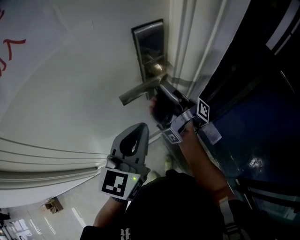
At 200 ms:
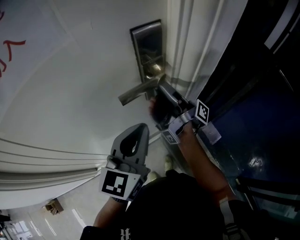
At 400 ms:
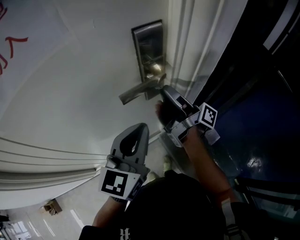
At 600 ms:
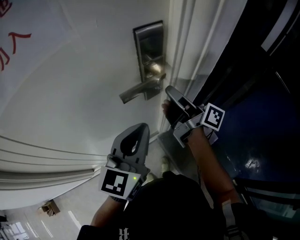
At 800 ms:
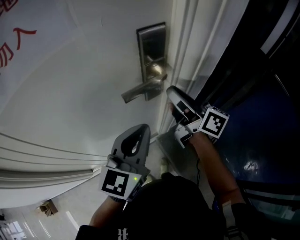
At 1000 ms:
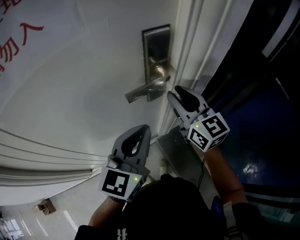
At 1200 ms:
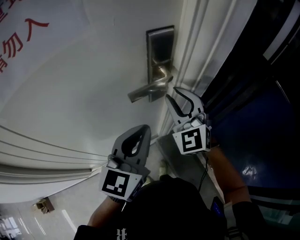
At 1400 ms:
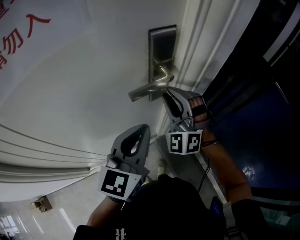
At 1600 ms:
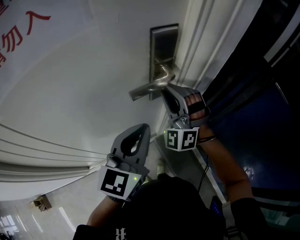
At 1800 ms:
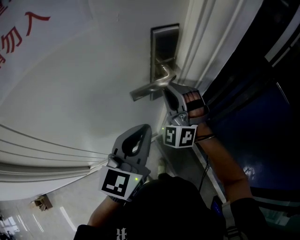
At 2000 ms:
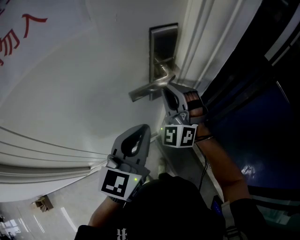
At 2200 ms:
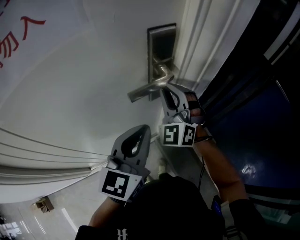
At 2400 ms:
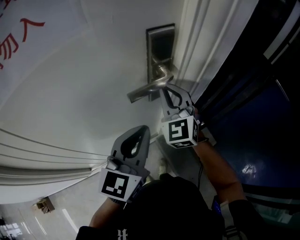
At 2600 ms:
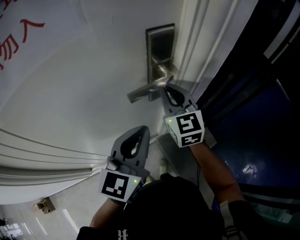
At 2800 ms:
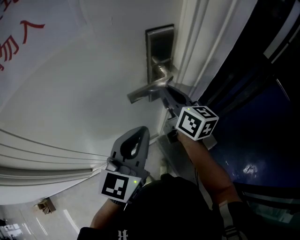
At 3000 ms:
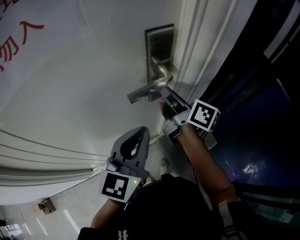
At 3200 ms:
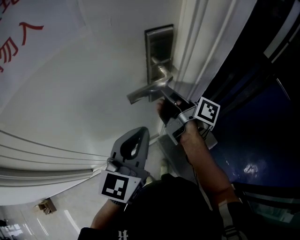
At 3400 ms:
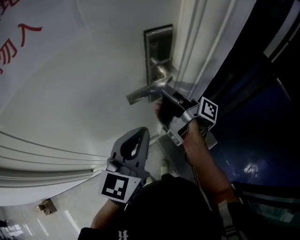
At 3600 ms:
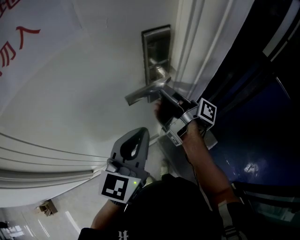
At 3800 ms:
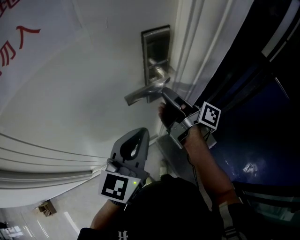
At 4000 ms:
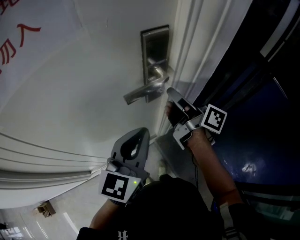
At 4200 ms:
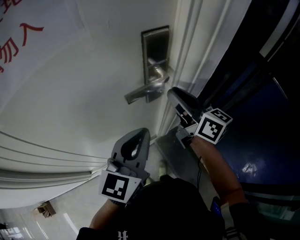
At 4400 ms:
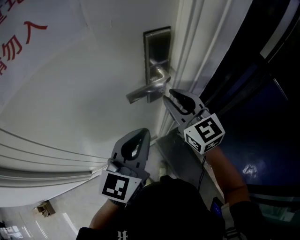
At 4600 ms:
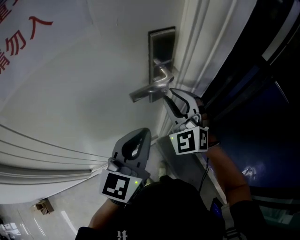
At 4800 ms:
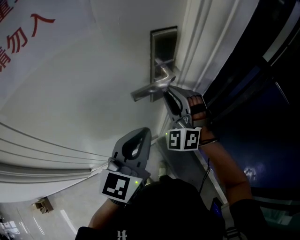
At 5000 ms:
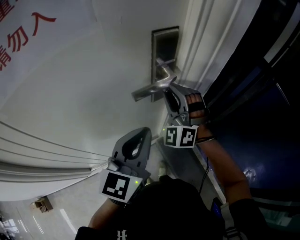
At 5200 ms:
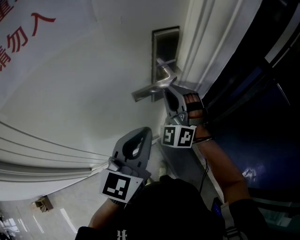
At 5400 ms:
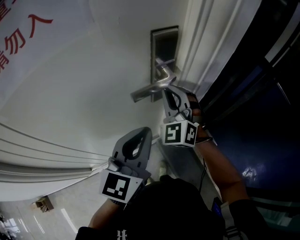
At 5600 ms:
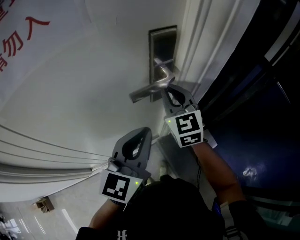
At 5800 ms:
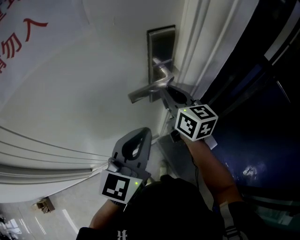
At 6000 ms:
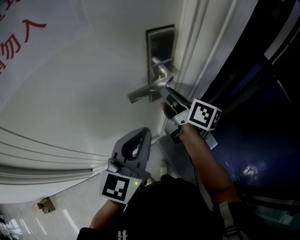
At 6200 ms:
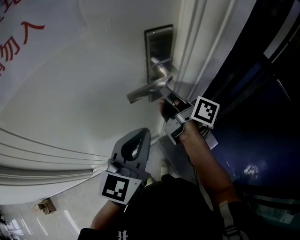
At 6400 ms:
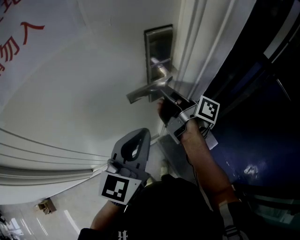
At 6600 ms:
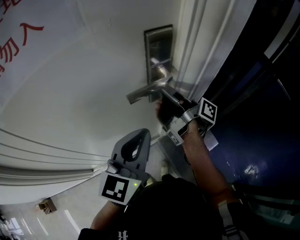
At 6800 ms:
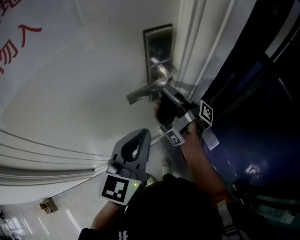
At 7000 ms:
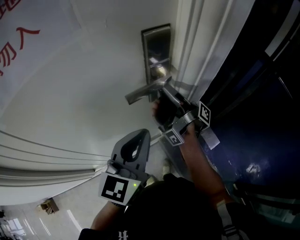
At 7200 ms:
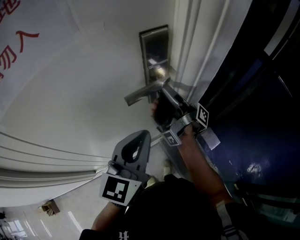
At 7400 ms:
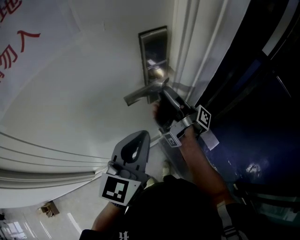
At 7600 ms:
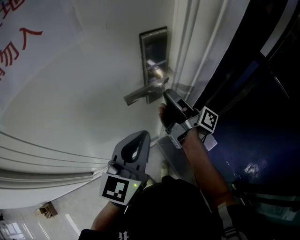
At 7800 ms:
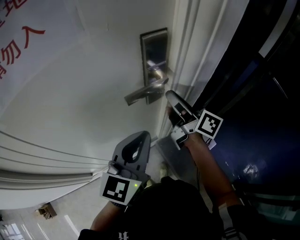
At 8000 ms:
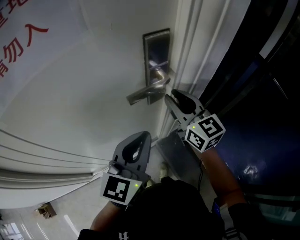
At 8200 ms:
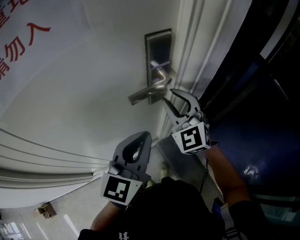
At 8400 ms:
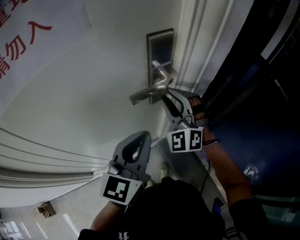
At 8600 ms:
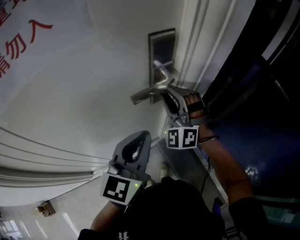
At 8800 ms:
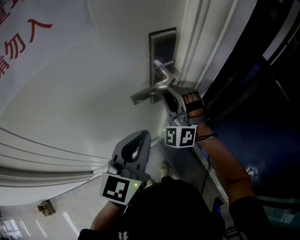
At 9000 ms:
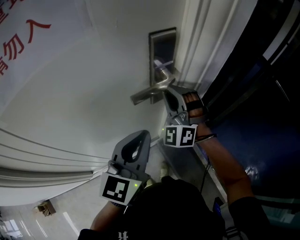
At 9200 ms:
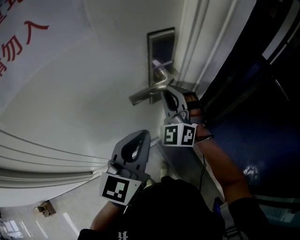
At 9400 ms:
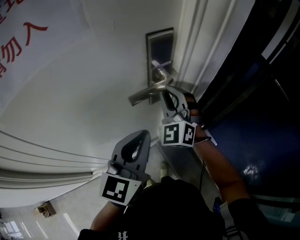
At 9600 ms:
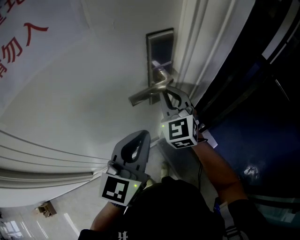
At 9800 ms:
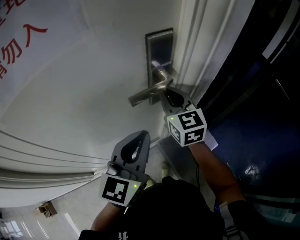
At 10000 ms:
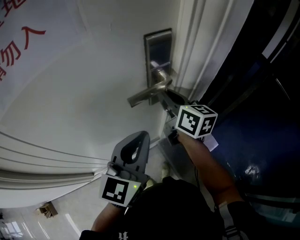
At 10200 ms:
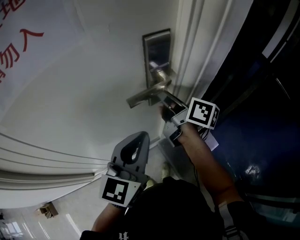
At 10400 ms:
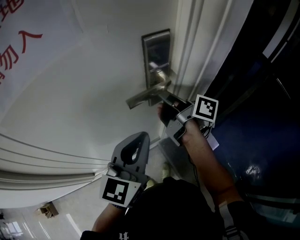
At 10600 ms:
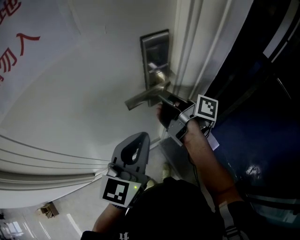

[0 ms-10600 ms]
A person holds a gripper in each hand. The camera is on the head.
0 ms to 1600 ms: The right gripper tilts its fingers approximately 30 degrees downward.
1600 ms to 3000 ms: The right gripper twists about 130 degrees clockwise, seen from behind.
3000 ms to 4600 ms: The right gripper rotates around the line of its fingers by approximately 100 degrees, counterclockwise from behind.
4600 ms to 6000 ms: The right gripper rotates around the line of its fingers by approximately 100 degrees, clockwise from behind.
6000 ms to 7600 ms: The right gripper rotates approximately 40 degrees.
7600 ms to 9000 ms: The right gripper shifts by roughly 5 cm, and rotates around the line of its fingers by approximately 150 degrees, counterclockwise from behind.
9000 ms to 10600 ms: The right gripper twists some 150 degrees clockwise, seen from behind.

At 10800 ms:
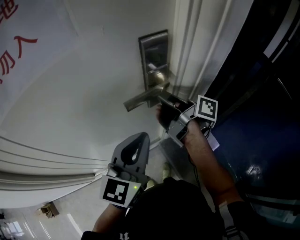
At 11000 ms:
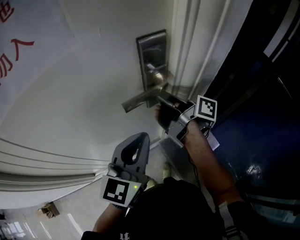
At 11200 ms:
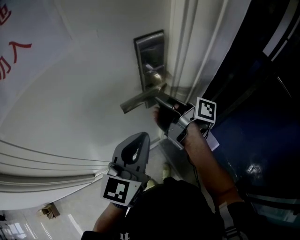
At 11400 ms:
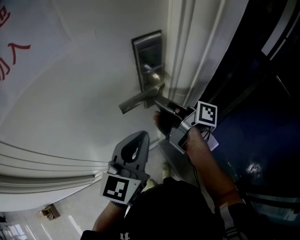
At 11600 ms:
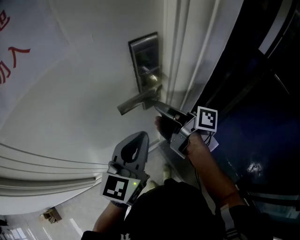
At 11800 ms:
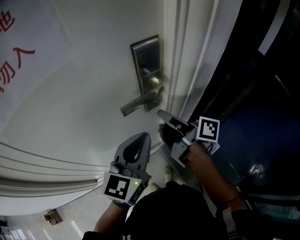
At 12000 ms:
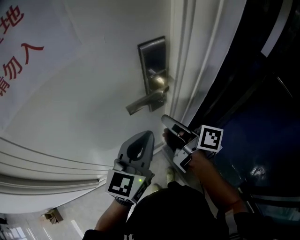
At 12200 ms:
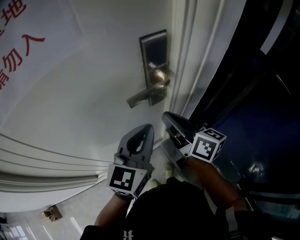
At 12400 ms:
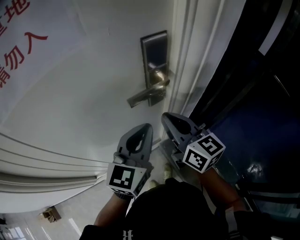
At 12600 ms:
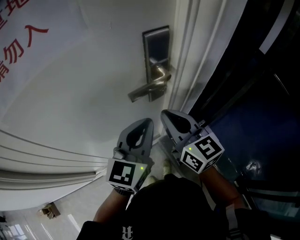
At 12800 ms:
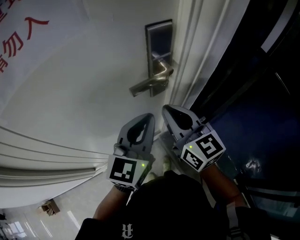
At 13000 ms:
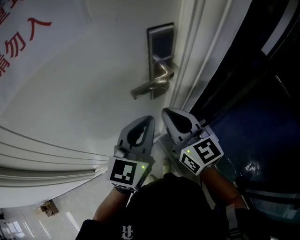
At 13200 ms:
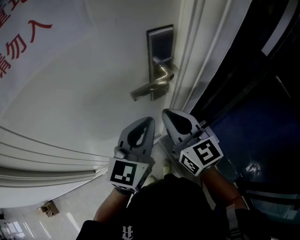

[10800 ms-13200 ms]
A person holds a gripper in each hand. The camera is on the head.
10800 ms to 12000 ms: The right gripper is displaced backward by approximately 5 cm.
12000 ms to 13200 ms: The right gripper ends up approximately 5 cm from where it was, and rolls counterclockwise, seen from behind, by roughly 60 degrees.

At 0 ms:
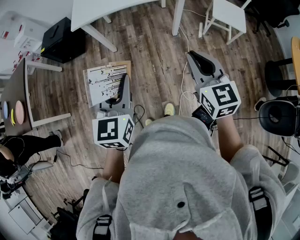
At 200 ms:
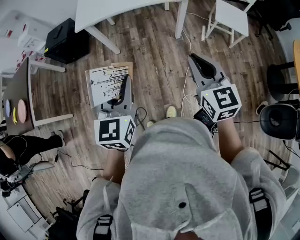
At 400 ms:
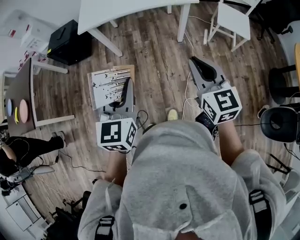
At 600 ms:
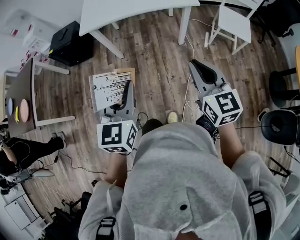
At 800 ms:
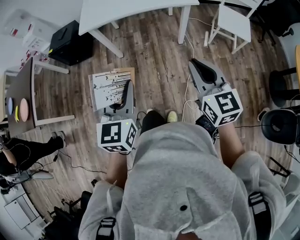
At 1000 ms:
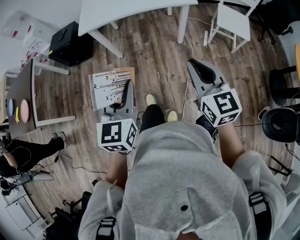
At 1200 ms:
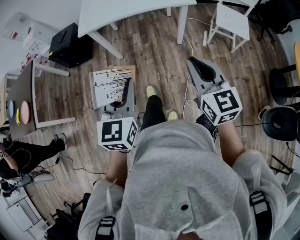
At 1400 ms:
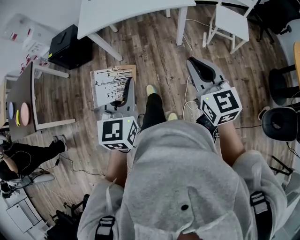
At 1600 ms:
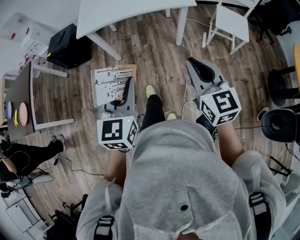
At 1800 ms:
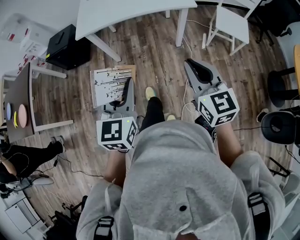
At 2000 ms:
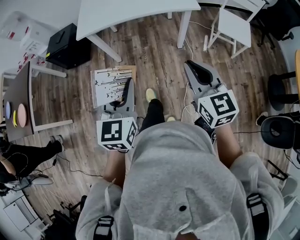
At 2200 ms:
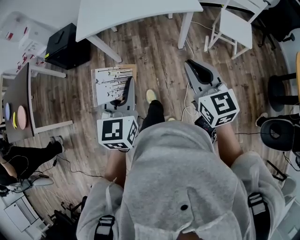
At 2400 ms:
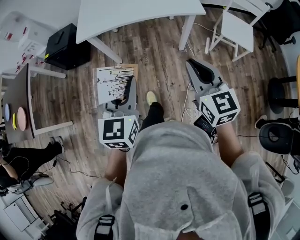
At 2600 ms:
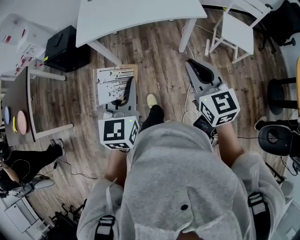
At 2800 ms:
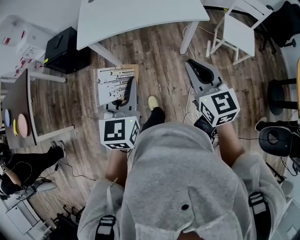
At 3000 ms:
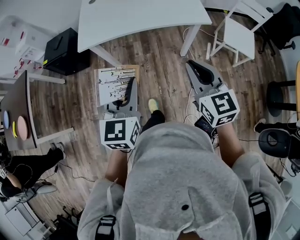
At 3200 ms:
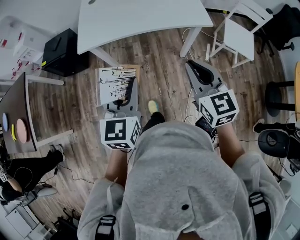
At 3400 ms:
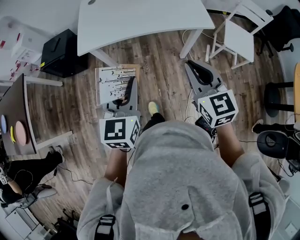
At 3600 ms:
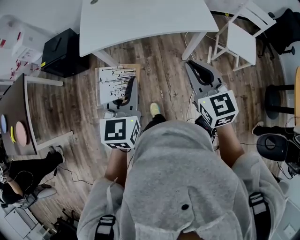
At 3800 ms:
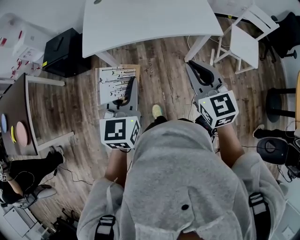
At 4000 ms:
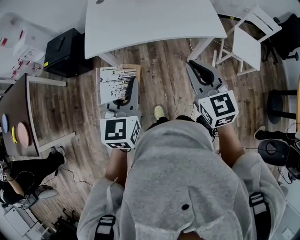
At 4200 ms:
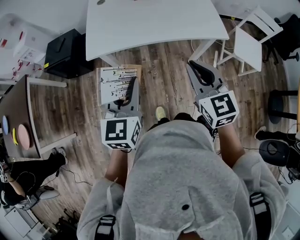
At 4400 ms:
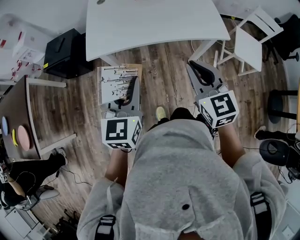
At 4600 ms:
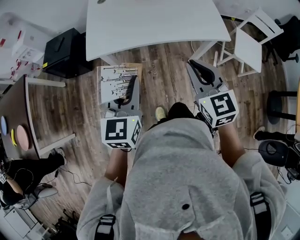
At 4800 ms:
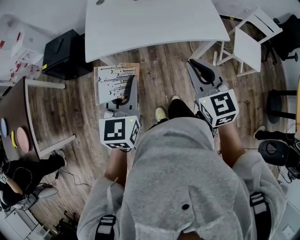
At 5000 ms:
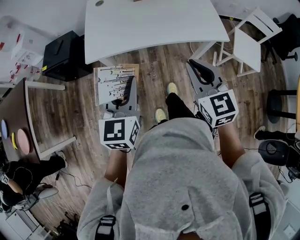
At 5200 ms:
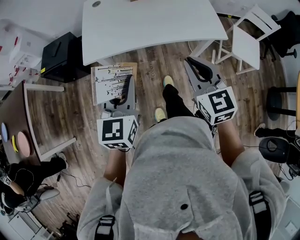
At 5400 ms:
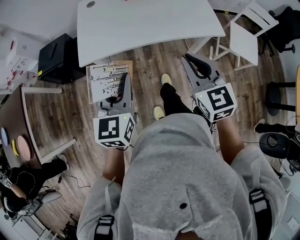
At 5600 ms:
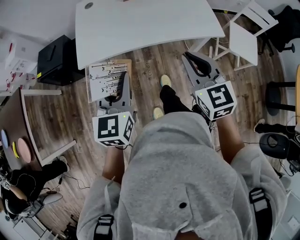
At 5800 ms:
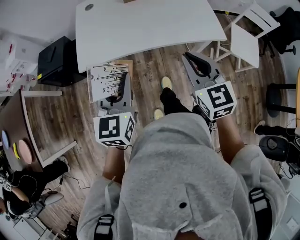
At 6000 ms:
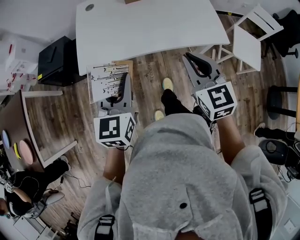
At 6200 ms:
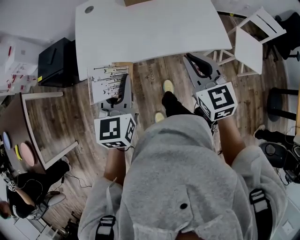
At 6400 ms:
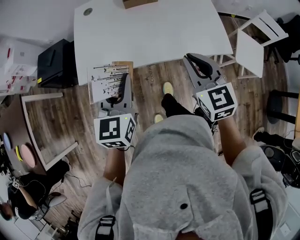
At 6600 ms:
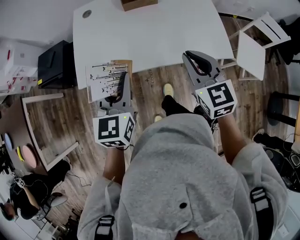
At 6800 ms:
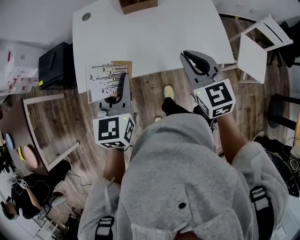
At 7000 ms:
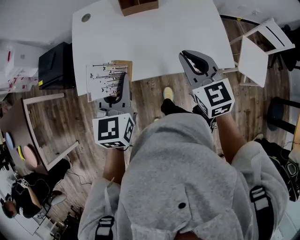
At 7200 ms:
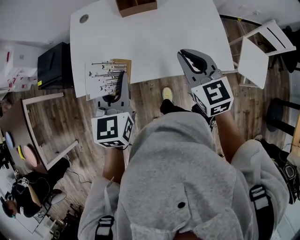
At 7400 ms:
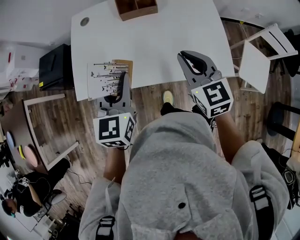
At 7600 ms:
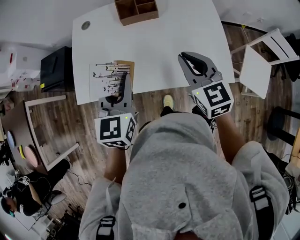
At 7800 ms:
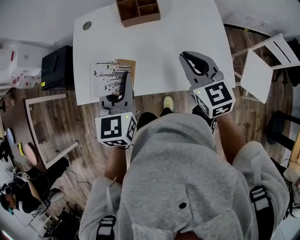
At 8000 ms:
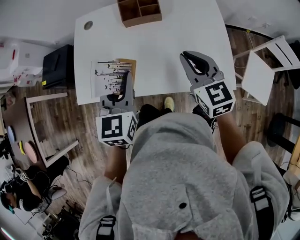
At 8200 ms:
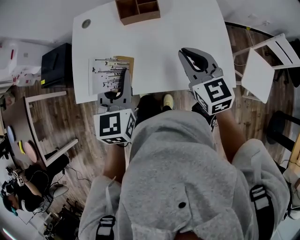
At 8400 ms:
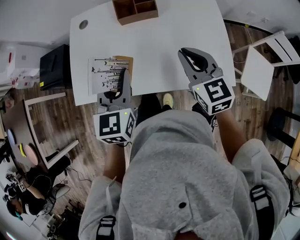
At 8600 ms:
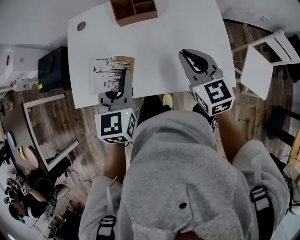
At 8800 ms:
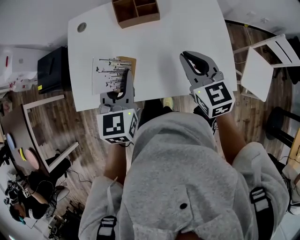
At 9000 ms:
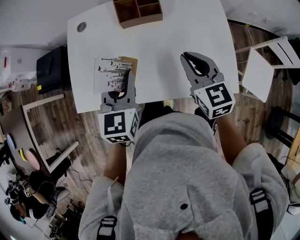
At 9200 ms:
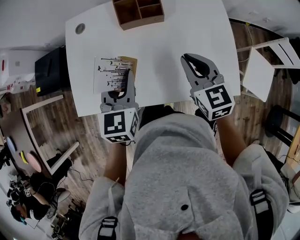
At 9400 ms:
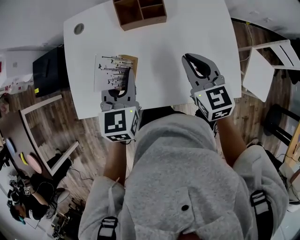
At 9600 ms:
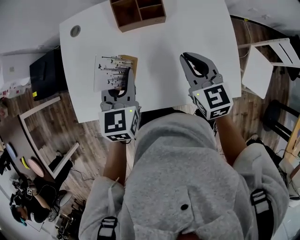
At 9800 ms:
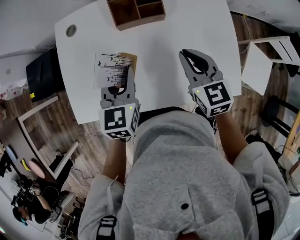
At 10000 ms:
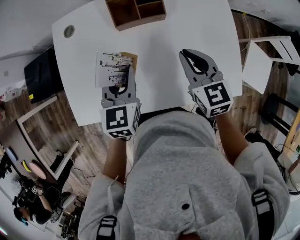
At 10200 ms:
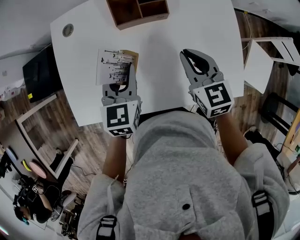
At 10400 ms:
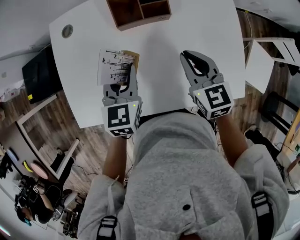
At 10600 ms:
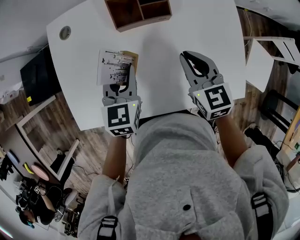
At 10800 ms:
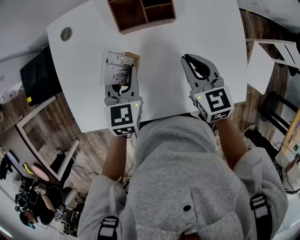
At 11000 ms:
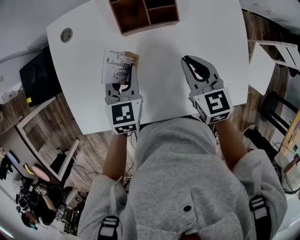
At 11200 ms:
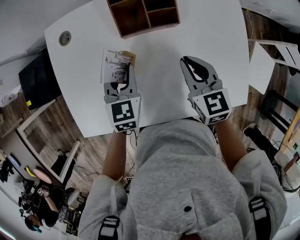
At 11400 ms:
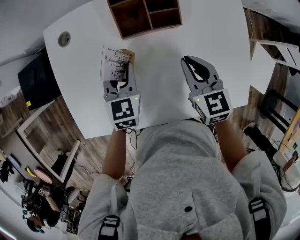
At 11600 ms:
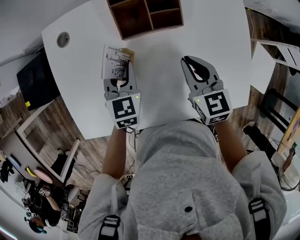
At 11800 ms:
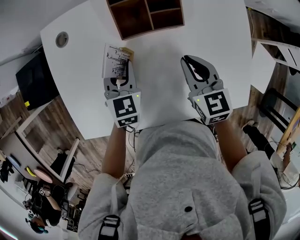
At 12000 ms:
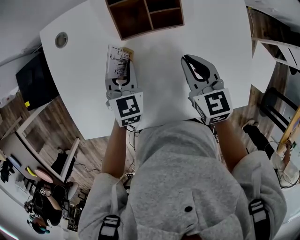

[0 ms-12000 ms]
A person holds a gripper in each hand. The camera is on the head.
0 ms to 1600 ms: The grippers make only small movements.
1600 ms to 3000 ms: Both grippers move forward, roughly 15 cm.
3000 ms to 4400 ms: Both grippers move forward and to the left, approximately 15 cm.
4400 ms to 6000 ms: The two grippers go some 10 cm forward.
6000 ms to 7600 ms: The two grippers go about 20 cm forward.
7600 ms to 9000 ms: Both grippers travel together forward, roughly 5 cm.
9000 ms to 10400 ms: The two grippers go approximately 10 cm forward and downward.
10400 ms to 12000 ms: The left gripper is displaced downward and forward by some 10 cm. The right gripper shifts by some 5 cm.
